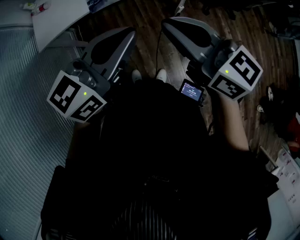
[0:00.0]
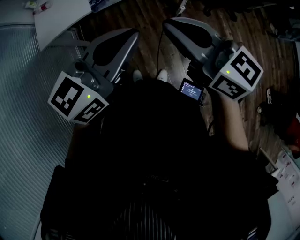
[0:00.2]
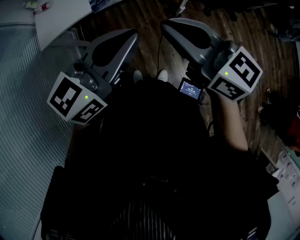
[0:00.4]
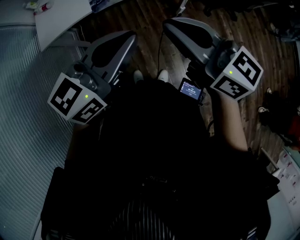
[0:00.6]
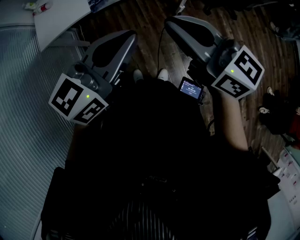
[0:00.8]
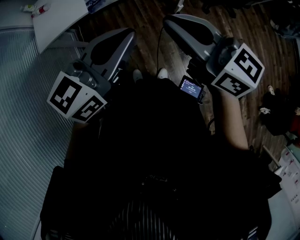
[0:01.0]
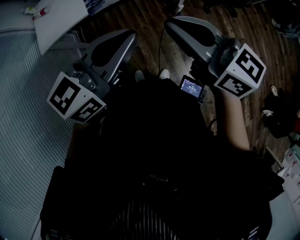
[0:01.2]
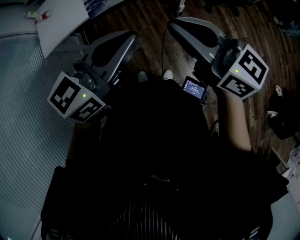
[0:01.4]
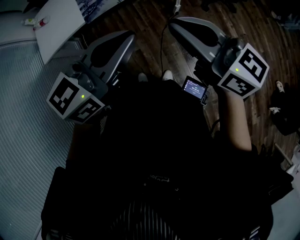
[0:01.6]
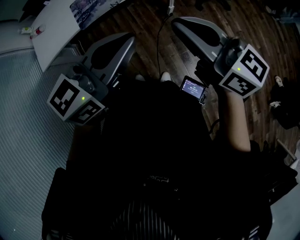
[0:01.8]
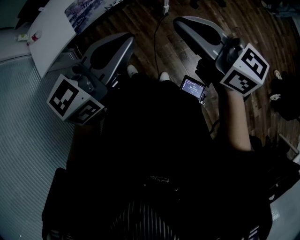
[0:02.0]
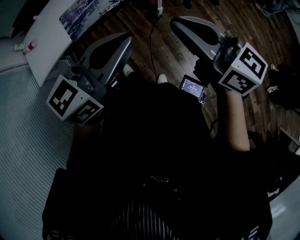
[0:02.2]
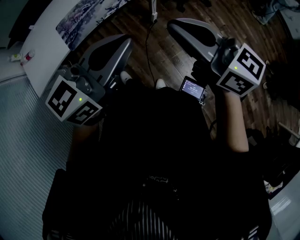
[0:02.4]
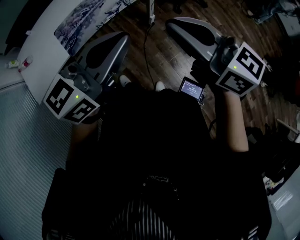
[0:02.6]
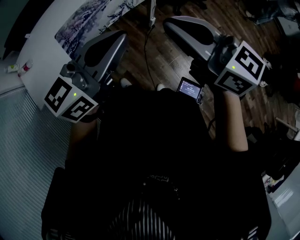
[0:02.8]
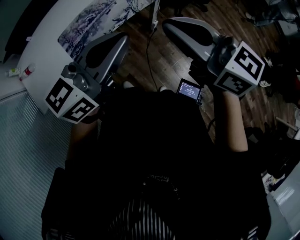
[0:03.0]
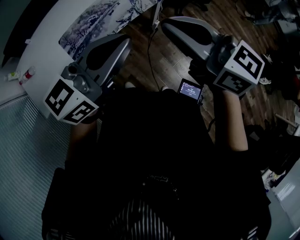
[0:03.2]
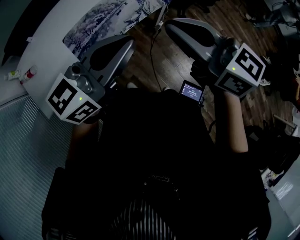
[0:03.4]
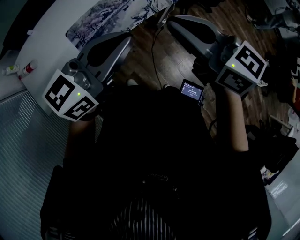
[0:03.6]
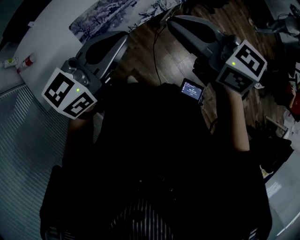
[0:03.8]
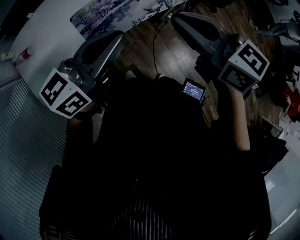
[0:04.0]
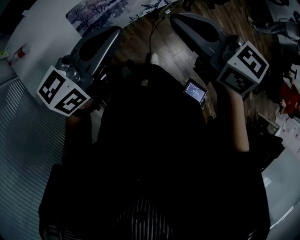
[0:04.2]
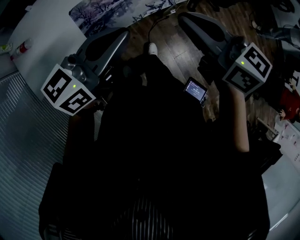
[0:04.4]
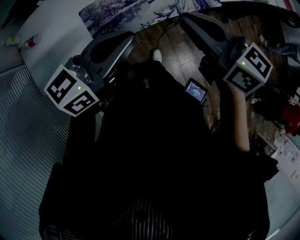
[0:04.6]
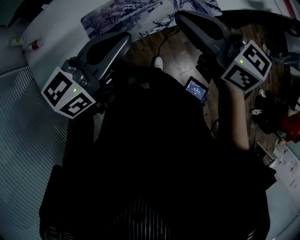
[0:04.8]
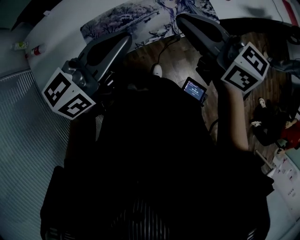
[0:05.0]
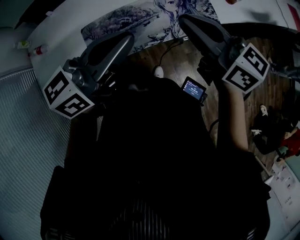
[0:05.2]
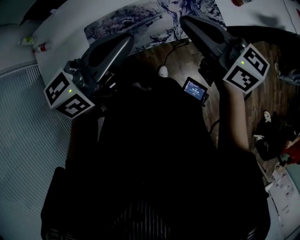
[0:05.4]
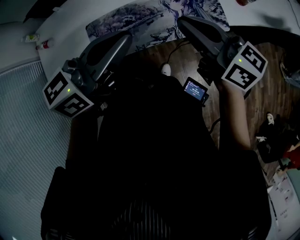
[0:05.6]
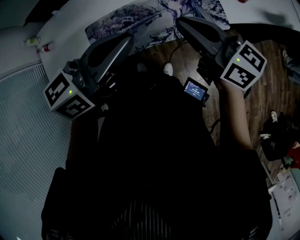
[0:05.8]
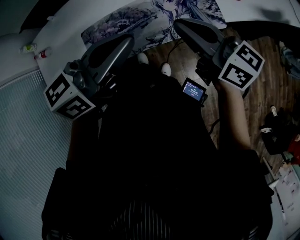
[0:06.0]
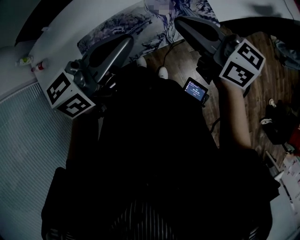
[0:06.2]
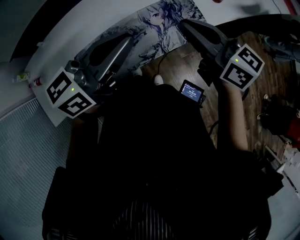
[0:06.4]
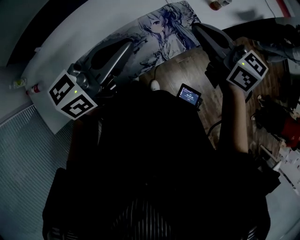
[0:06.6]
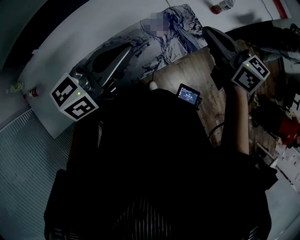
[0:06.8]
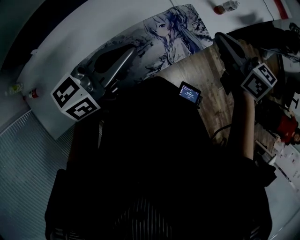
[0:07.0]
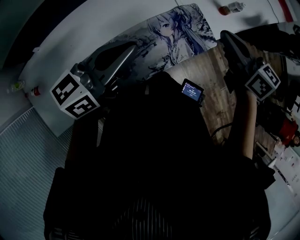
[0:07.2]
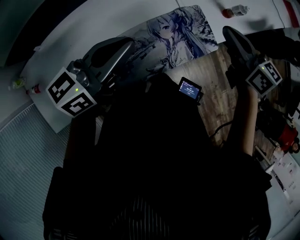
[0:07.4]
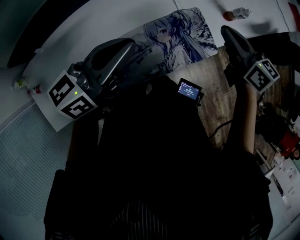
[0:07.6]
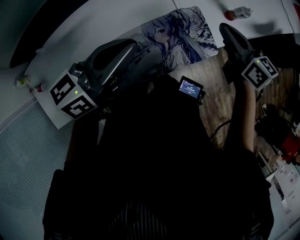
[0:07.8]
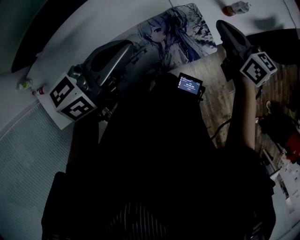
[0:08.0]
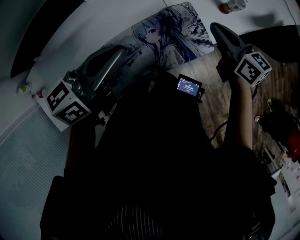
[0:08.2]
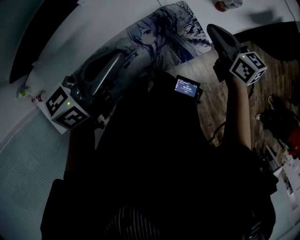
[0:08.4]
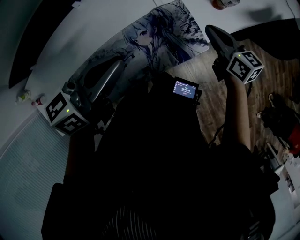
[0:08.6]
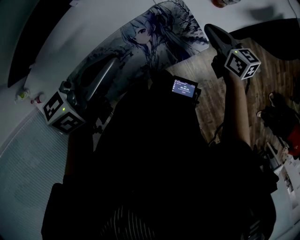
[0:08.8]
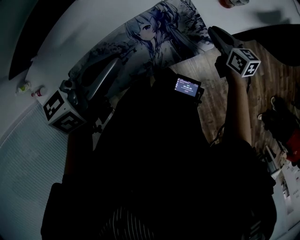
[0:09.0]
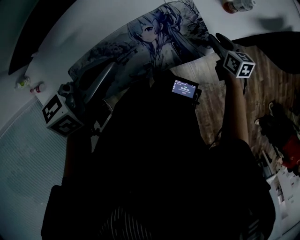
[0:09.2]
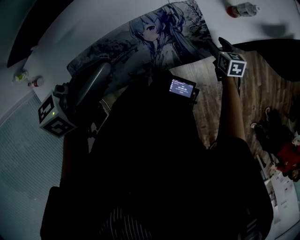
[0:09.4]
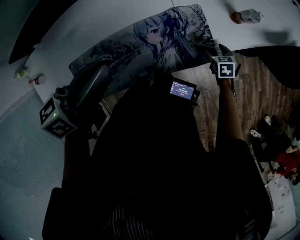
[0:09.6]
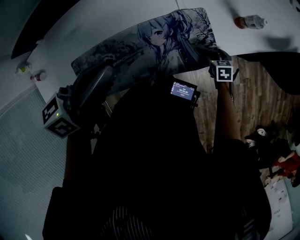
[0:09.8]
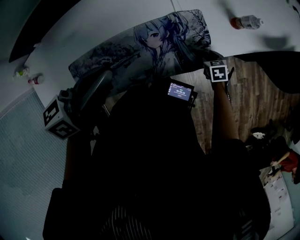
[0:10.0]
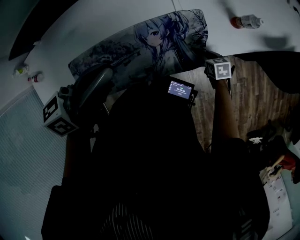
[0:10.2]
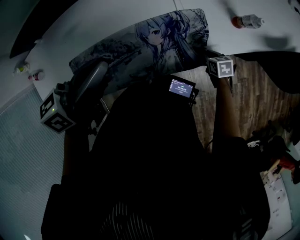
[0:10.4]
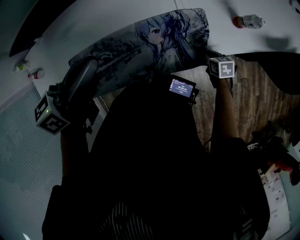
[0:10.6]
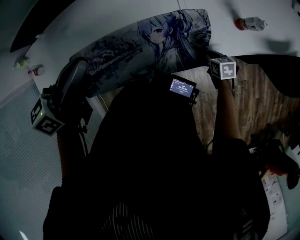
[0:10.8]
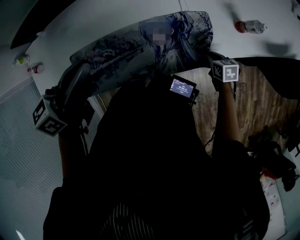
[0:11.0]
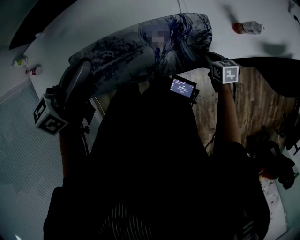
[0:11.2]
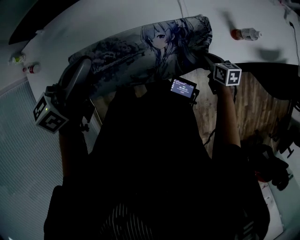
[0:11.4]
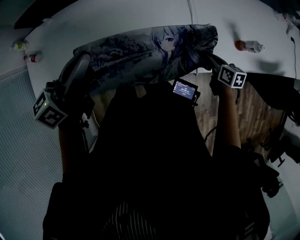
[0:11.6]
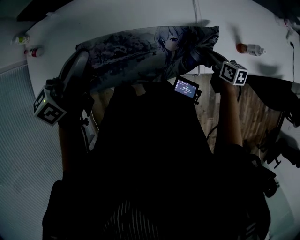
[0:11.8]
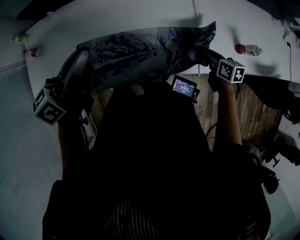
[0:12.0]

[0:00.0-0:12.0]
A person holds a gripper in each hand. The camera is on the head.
0:00.0 to 0:01.6: Both grippers travel together to the right, roughly 10 cm.
0:01.6 to 0:03.0: The two grippers go about 15 cm forward and to the left.
0:03.0 to 0:04.4: The left gripper moves to the left, roughly 20 cm, while the right gripper shifts some 20 cm to the left and forward.
0:04.4 to 0:06.0: The right gripper travels forward and to the right by approximately 20 cm. The left gripper goes roughly 20 cm to the right and forward.
0:06.0 to 0:07.6: The left gripper travels forward by about 20 cm, while the right gripper travels forward and to the right by approximately 25 cm, and swivels roughly 30 degrees.
0:07.6 to 0:09.0: The left gripper moves to the right and downward, about 10 cm, while the right gripper travels downward and to the right by some 25 cm.
0:09.0 to 0:10.4: The left gripper shifts by some 5 cm, while the right gripper travels downward by roughly 15 cm, changes its angle by about 30 degrees, and opens and closes again.
0:10.4 to 0:12.0: The right gripper is displaced upward, to the left and forward by some 20 cm; the left gripper travels to the left by about 20 cm, and turns by roughly 20 degrees.

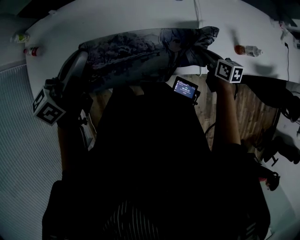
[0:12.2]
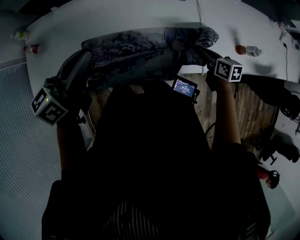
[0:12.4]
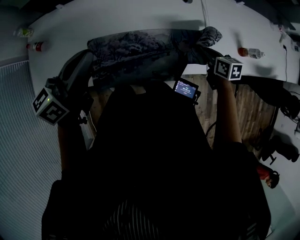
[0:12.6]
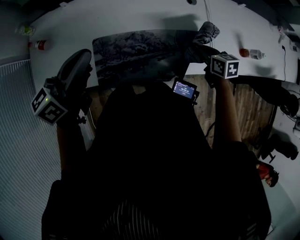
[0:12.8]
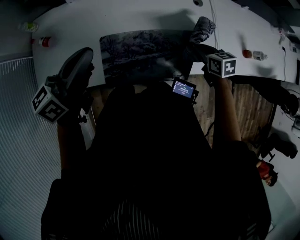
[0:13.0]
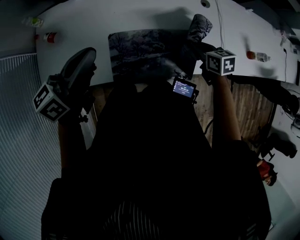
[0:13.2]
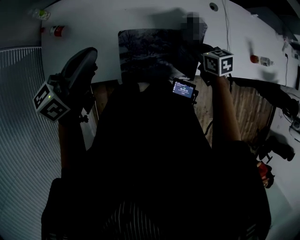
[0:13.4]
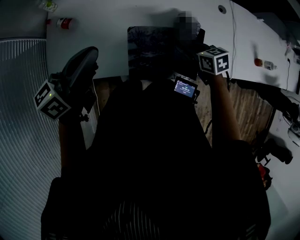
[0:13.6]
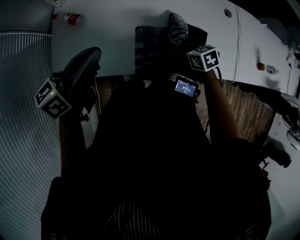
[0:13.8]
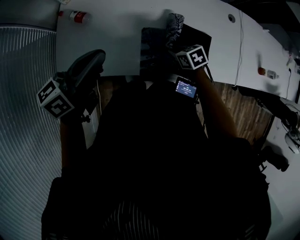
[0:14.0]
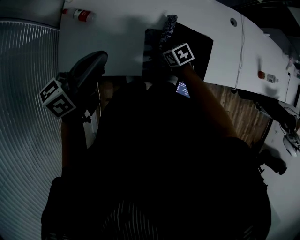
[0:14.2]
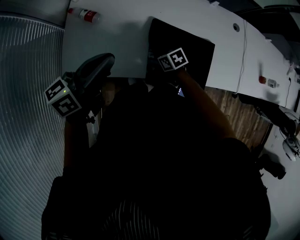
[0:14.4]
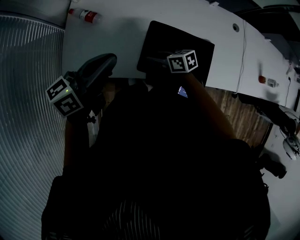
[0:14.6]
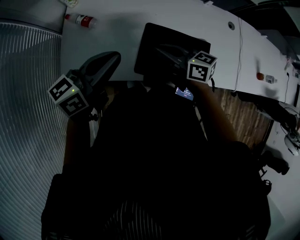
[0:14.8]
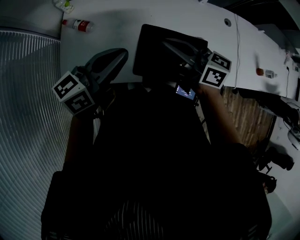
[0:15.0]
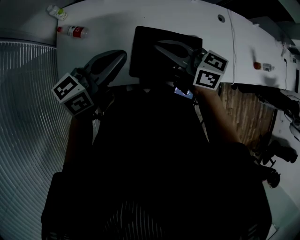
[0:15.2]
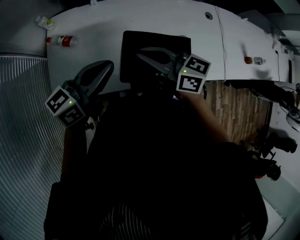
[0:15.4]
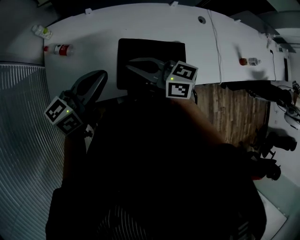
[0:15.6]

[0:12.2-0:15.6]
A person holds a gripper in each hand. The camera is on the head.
0:12.2 to 0:13.8: The two grippers go about 35 cm to the left. The right gripper swivels some 30 degrees.
0:13.8 to 0:15.6: The right gripper moves upward, some 20 cm, tips its fingers upward by some 50 degrees, and opens, then closes again.

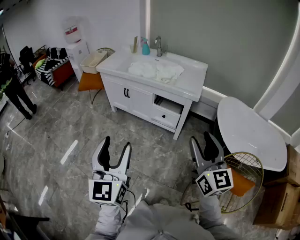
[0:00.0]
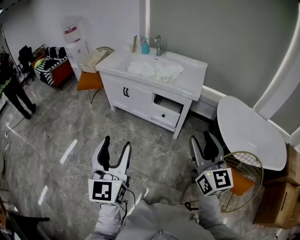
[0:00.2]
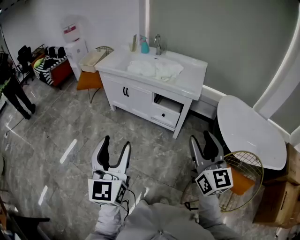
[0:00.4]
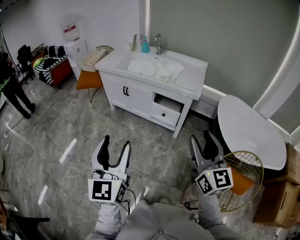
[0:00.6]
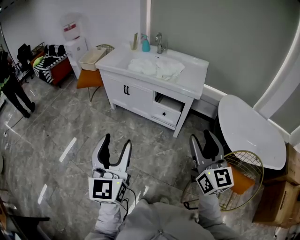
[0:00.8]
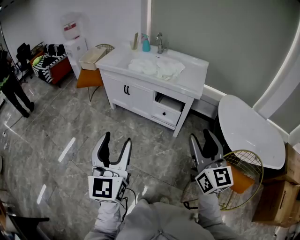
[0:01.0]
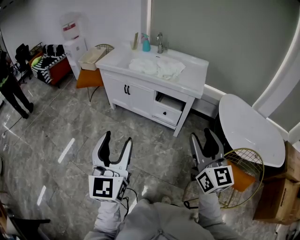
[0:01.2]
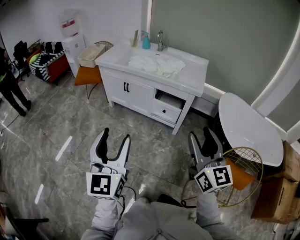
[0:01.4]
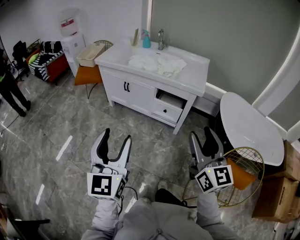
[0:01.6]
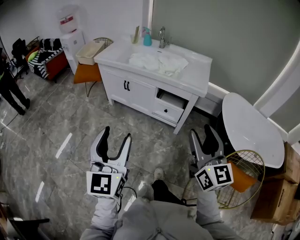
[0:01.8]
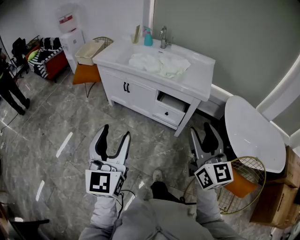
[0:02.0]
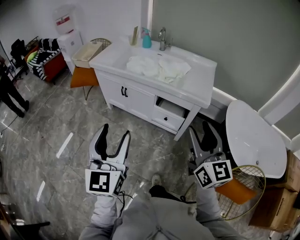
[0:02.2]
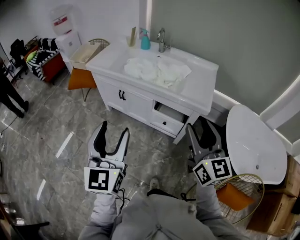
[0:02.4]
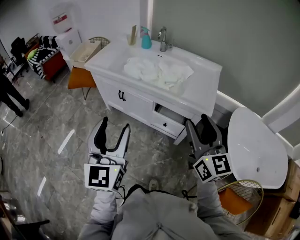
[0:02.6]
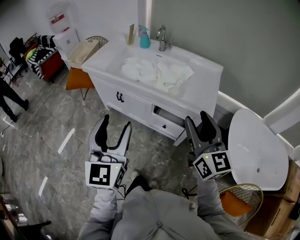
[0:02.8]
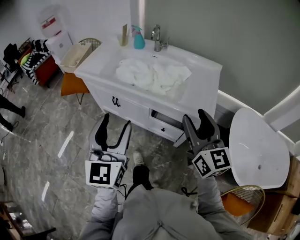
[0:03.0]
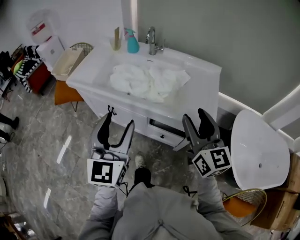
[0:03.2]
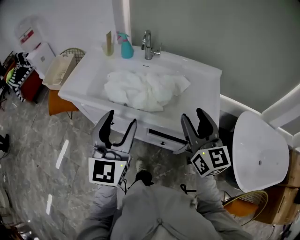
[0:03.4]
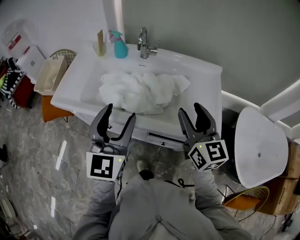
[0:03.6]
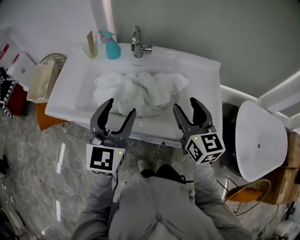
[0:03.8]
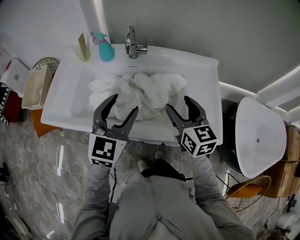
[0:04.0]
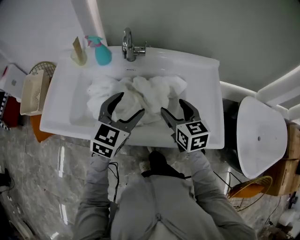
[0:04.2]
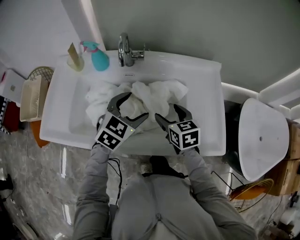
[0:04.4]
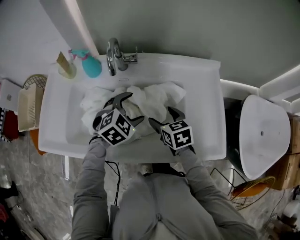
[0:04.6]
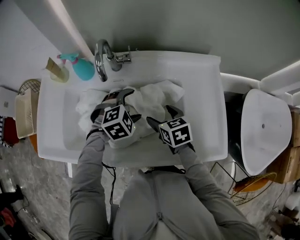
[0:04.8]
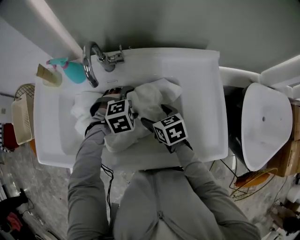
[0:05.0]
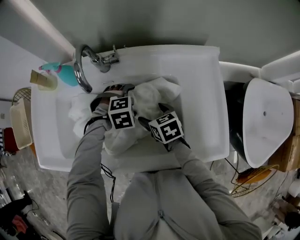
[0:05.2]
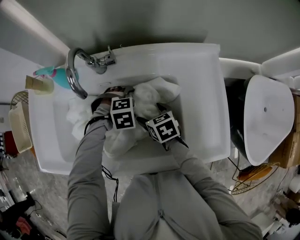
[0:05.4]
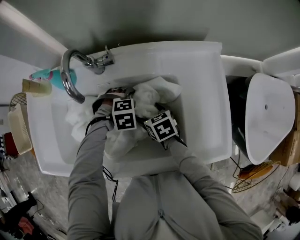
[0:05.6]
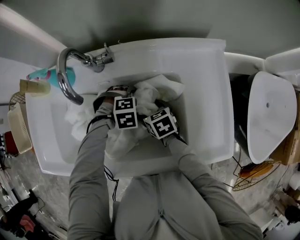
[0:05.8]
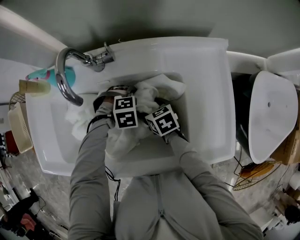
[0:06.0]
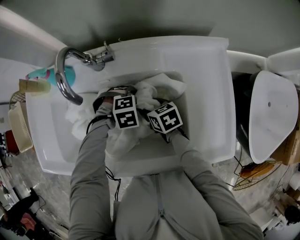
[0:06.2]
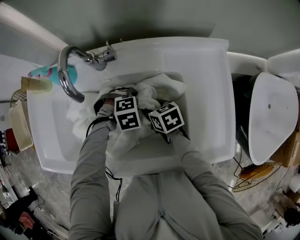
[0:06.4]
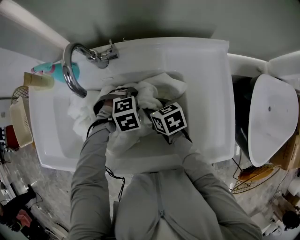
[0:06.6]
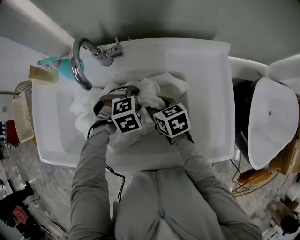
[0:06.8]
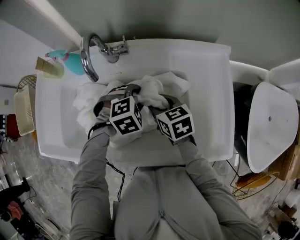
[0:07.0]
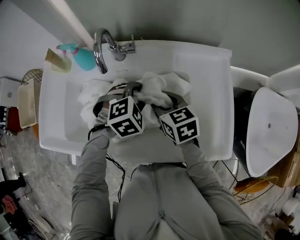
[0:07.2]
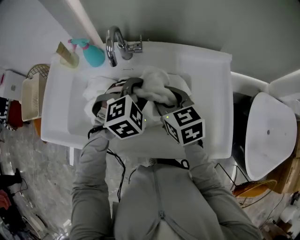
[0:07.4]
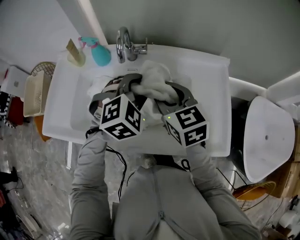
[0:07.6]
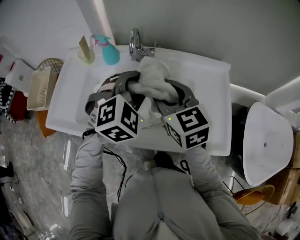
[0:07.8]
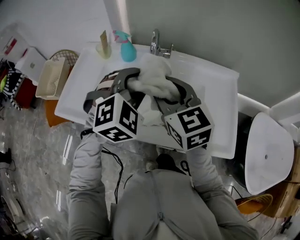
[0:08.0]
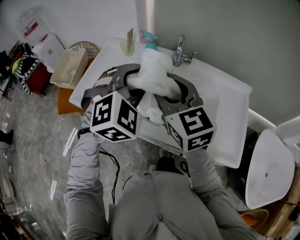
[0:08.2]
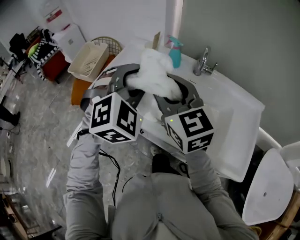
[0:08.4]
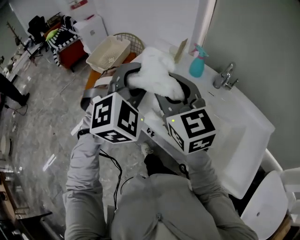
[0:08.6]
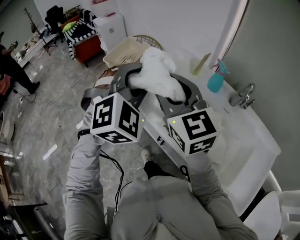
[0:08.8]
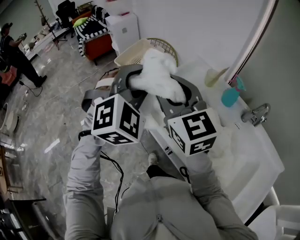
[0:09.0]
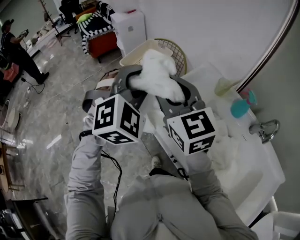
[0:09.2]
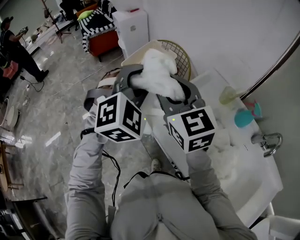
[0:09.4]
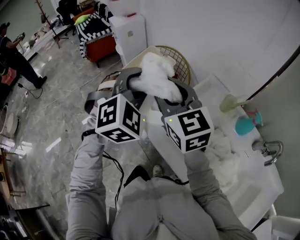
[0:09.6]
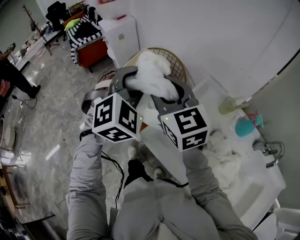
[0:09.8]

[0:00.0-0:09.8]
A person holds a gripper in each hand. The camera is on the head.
0:00.0 to 0:01.4: Both grippers travel together to the left, some 5 cm.
0:01.4 to 0:02.8: Both grippers move forward, some 30 cm.
0:02.8 to 0:04.2: The right gripper moves some 40 cm, and tips its fingers downward by about 30 degrees, while the left gripper shifts by about 50 cm, and rotates about 50 degrees.
0:04.2 to 0:05.6: The grippers both shift downward by approximately 25 cm. The left gripper tilts its fingers some 60 degrees downward. Meanwhile the right gripper turns by roughly 30 degrees.
0:05.6 to 0:07.0: Both grippers move upward, some 10 cm. The left gripper rotates about 20 degrees, and closes. The right gripper closes.
0:07.0 to 0:08.4: Both grippers move upward, approximately 30 cm. The right gripper tips its fingers upward by some 30 degrees, while the left gripper points its fingers approximately 40 degrees further upward.
0:08.4 to 0:09.8: The pair of grippers is taken forward and to the left, about 50 cm. The left gripper changes its angle by about 20 degrees.
